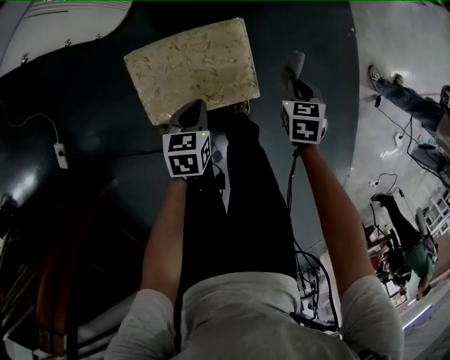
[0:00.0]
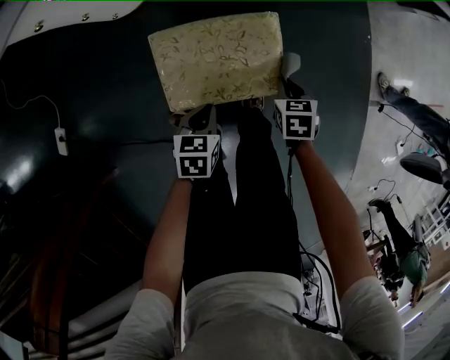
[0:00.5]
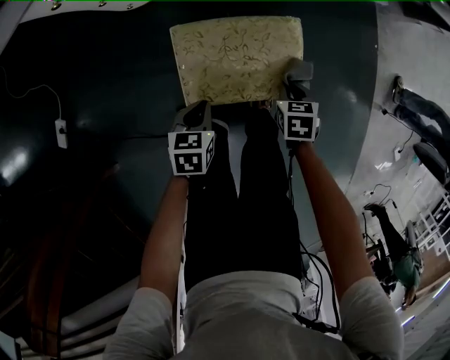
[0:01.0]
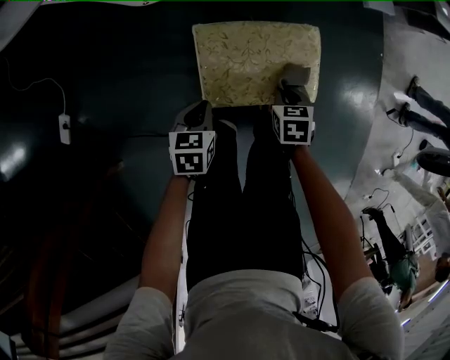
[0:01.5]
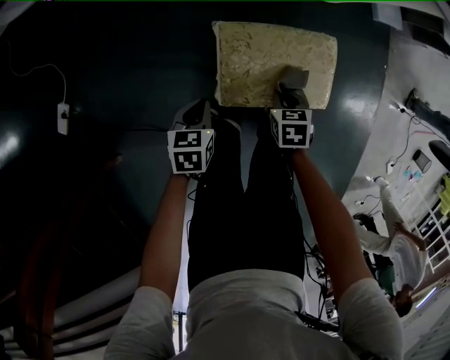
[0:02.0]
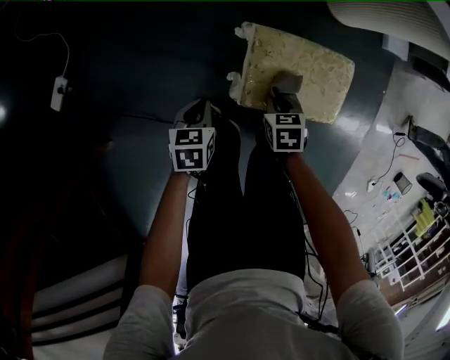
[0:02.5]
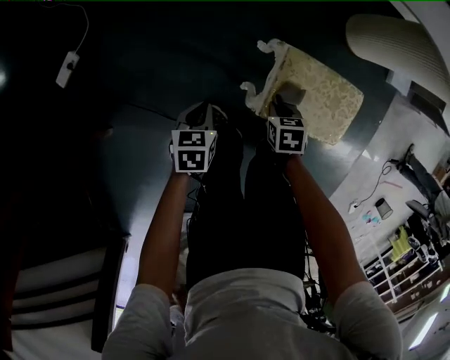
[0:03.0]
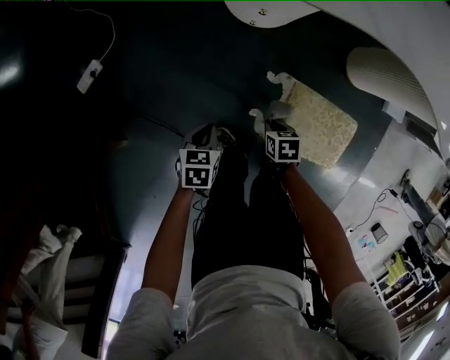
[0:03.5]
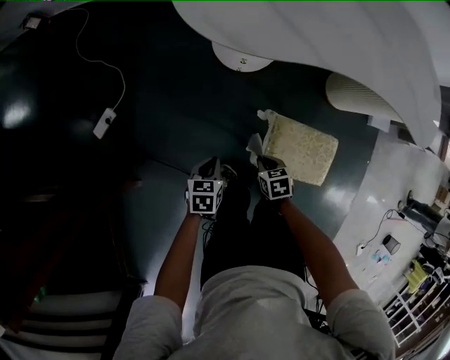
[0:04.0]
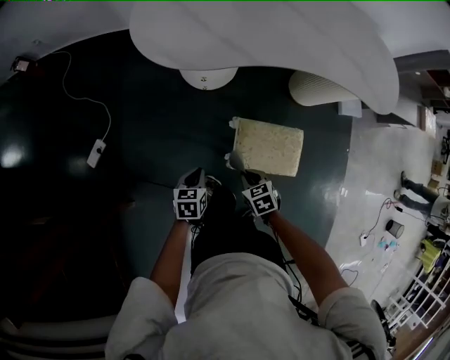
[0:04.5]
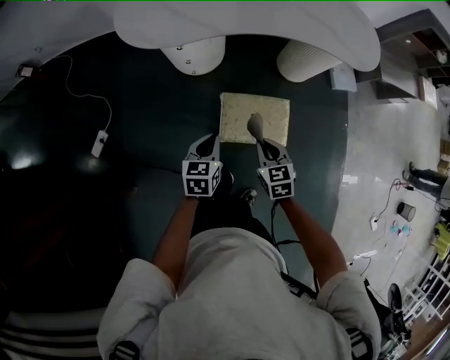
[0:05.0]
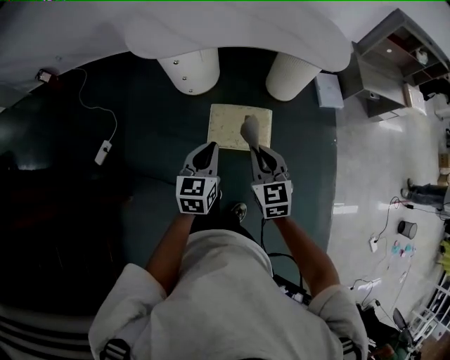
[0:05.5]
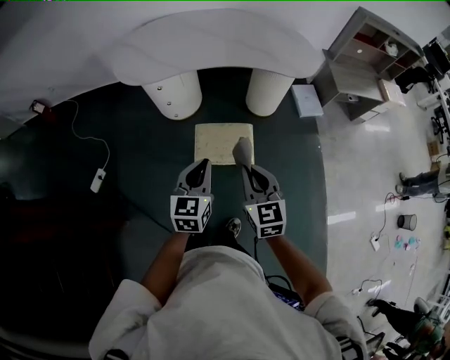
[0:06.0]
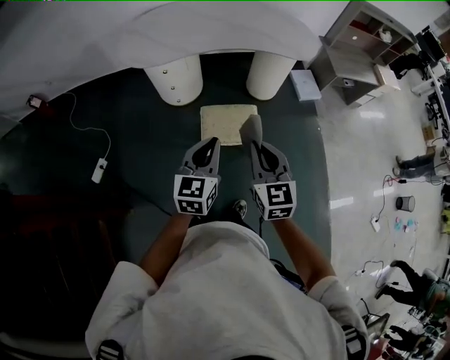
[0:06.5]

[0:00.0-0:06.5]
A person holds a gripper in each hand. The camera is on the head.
0:00.0 to 0:02.0: Both grippers travel together to the left, roughly 25 cm.
0:02.0 to 0:04.5: Both grippers travel together upward, roughly 20 cm. The right gripper rotates some 30 degrees.
0:04.5 to 0:06.5: The left gripper travels upward, to the right and backward by about 50 cm, and tilts its fingers some 40 degrees upward. The right gripper shifts approximately 50 cm upward, backward and to the right, and tilts its fingers roughly 40 degrees upward.

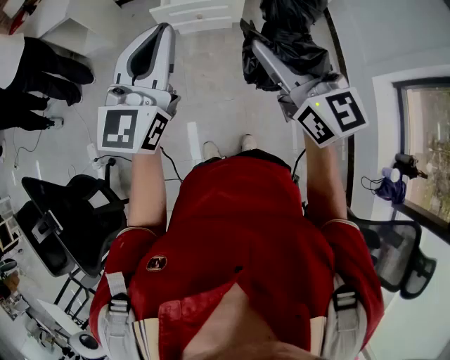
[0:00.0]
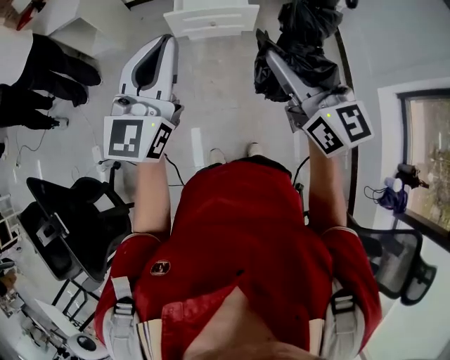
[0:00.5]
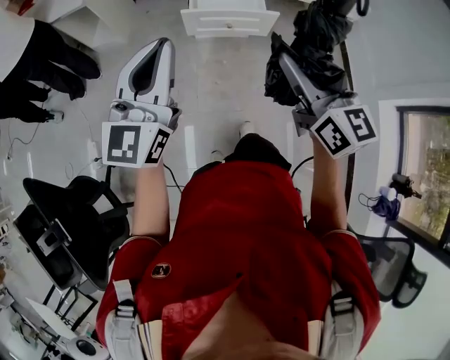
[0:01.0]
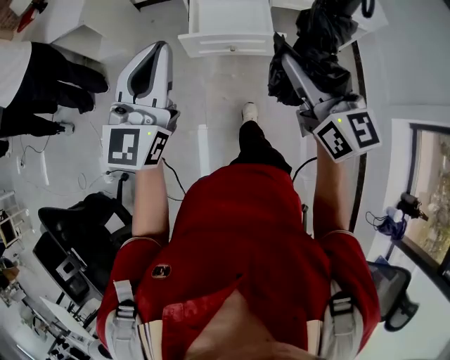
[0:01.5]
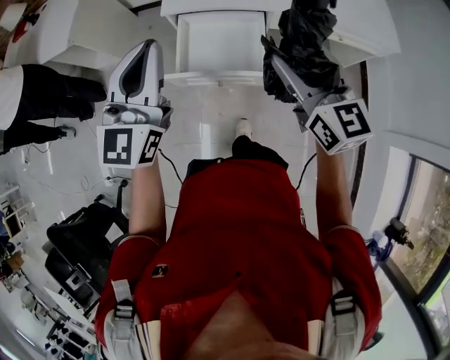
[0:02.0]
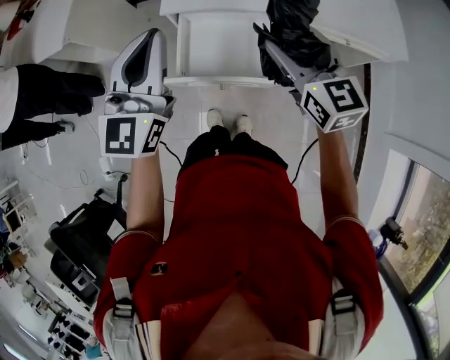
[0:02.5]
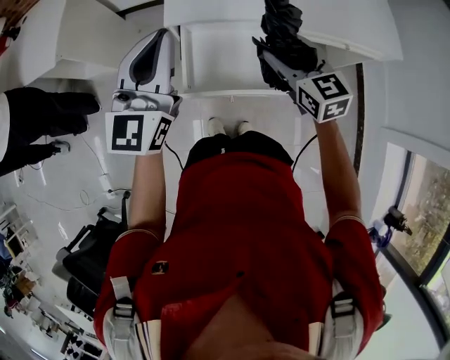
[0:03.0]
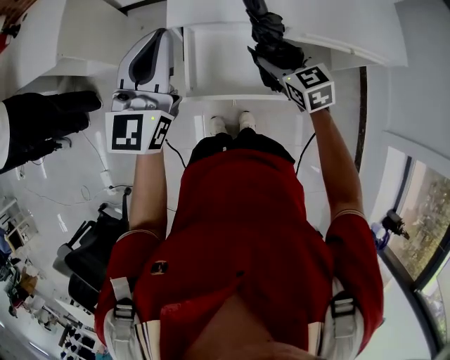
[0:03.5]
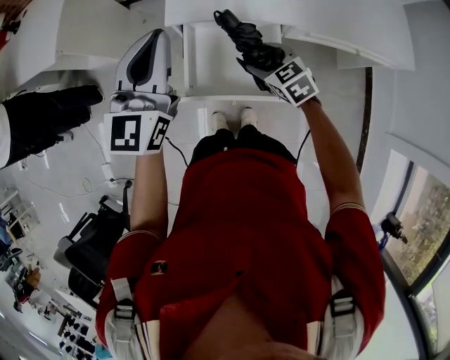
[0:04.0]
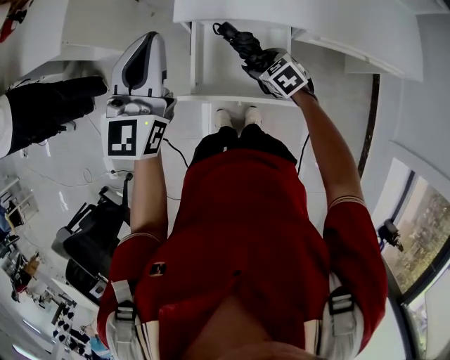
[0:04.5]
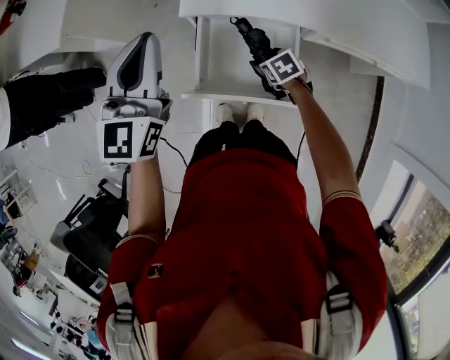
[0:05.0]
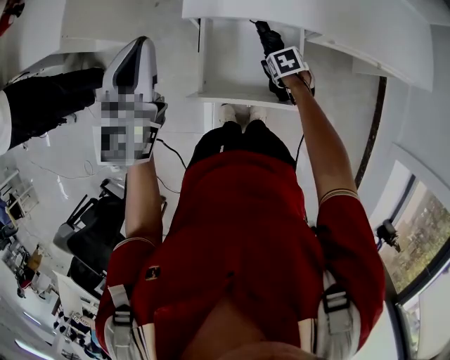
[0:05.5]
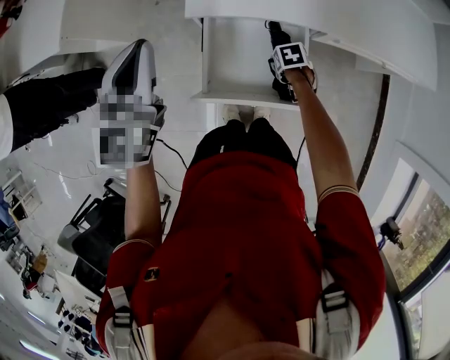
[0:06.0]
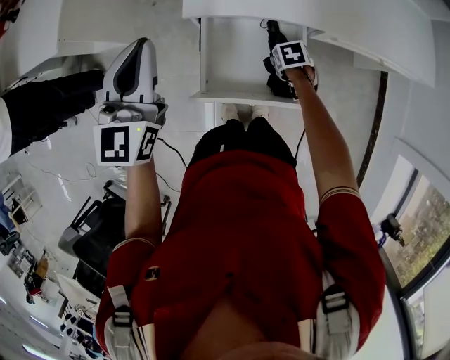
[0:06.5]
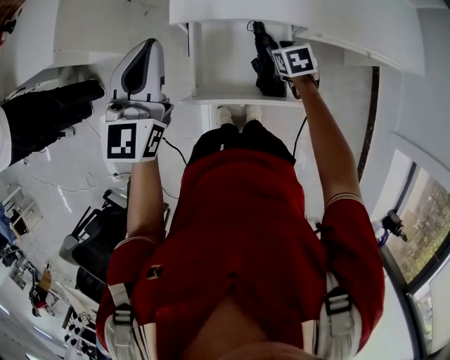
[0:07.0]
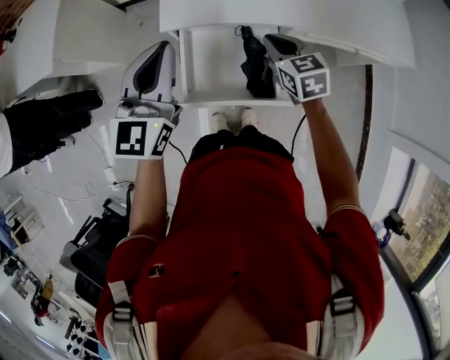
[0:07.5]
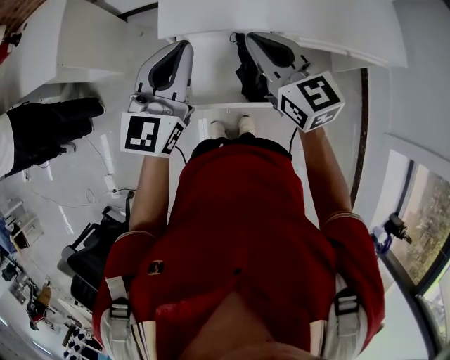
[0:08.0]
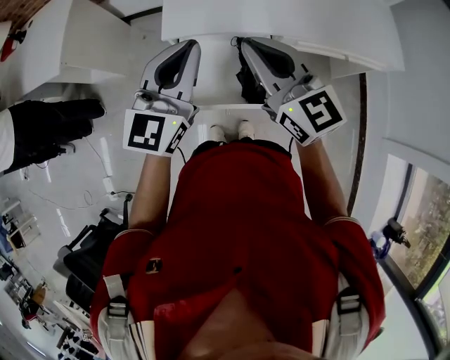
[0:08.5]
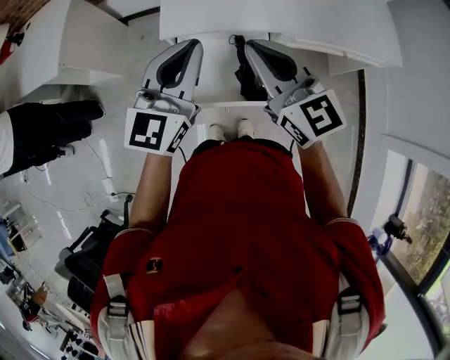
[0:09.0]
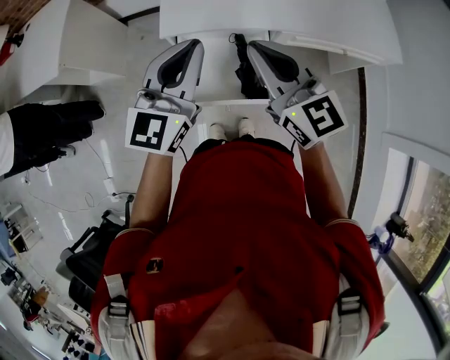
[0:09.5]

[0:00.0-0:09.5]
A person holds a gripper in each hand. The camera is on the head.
0:00.0 to 0:02.0: The two grippers go approximately 40 cm forward.
0:02.0 to 0:04.0: The right gripper heads downward and forward, covering roughly 30 cm, and angles its fingers downward, by roughly 40 degrees. The left gripper shifts some 15 cm forward.
0:04.0 to 0:05.5: The right gripper travels downward by roughly 15 cm, and angles its fingers downward, by approximately 30 degrees. The left gripper moves roughly 10 cm.
0:05.5 to 0:07.5: The left gripper changes place by some 10 cm. Meanwhile the right gripper heads upward, covering about 20 cm, angles its fingers upward, by roughly 40 degrees, and closes.
0:07.5 to 0:09.5: The right gripper moves upward and backward, approximately 20 cm, and tips its fingers upward by about 30 degrees, while the left gripper travels to the right by approximately 5 cm.

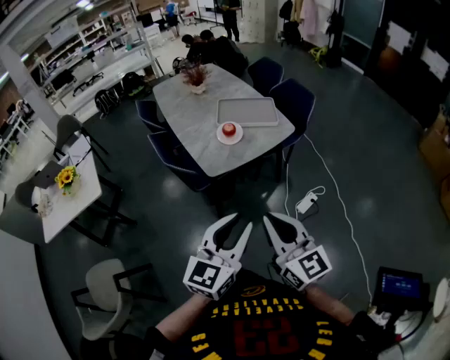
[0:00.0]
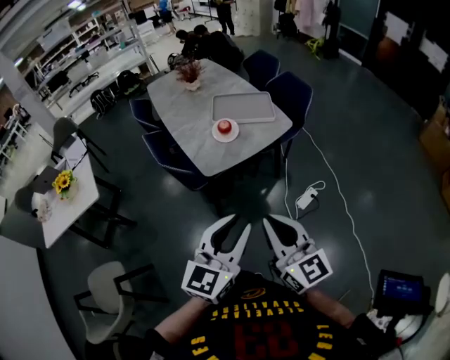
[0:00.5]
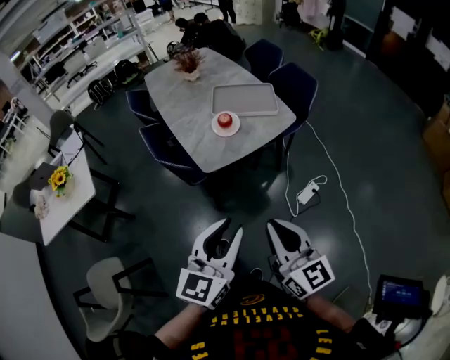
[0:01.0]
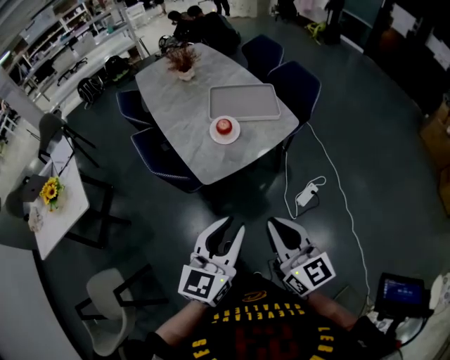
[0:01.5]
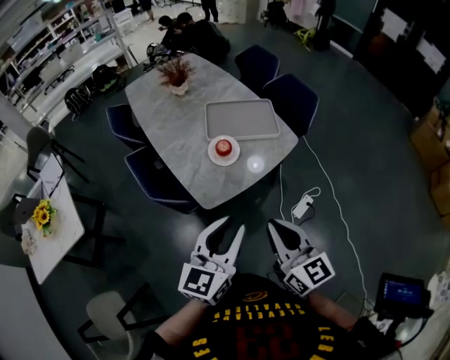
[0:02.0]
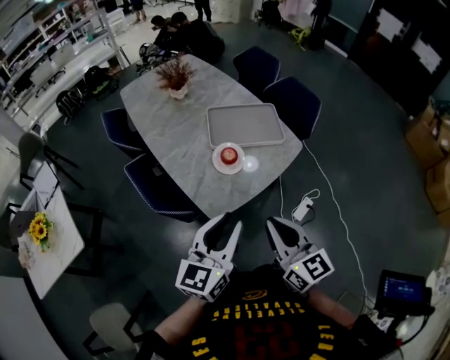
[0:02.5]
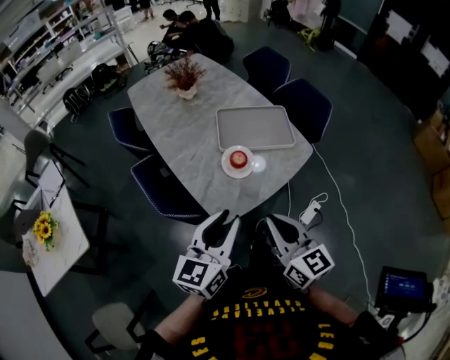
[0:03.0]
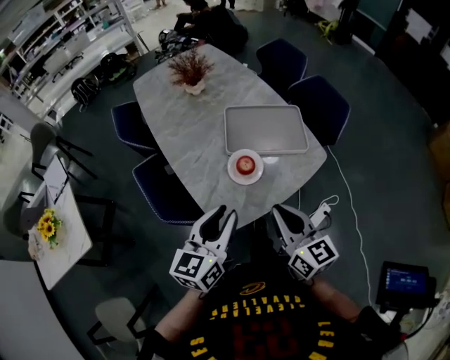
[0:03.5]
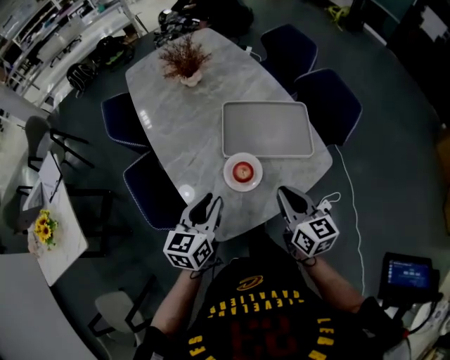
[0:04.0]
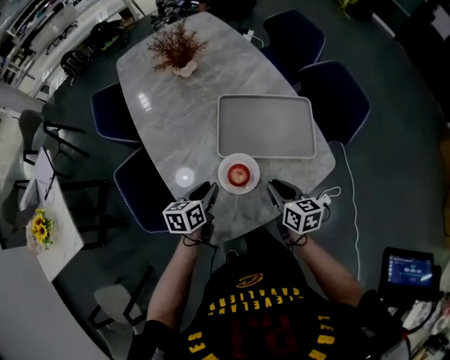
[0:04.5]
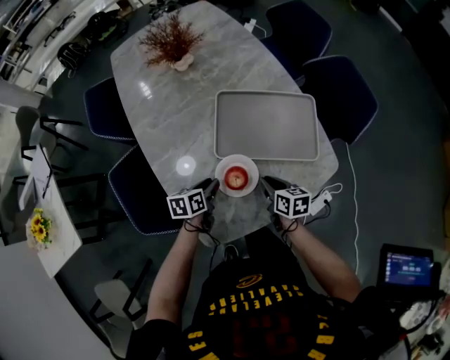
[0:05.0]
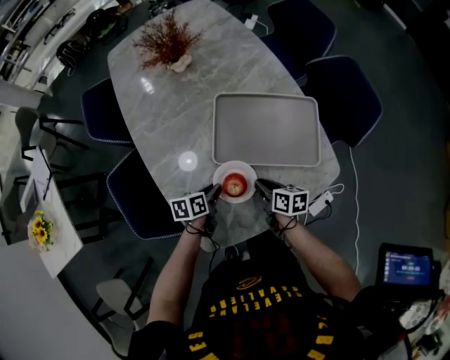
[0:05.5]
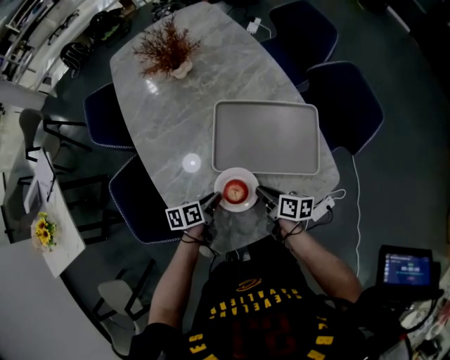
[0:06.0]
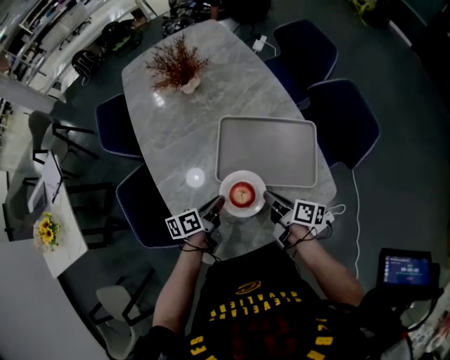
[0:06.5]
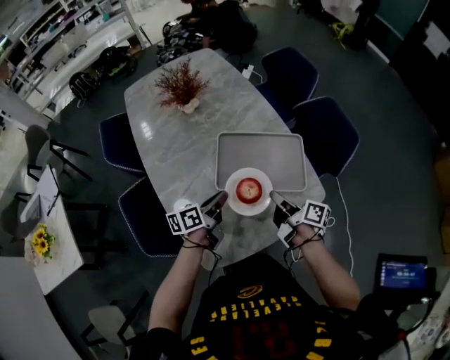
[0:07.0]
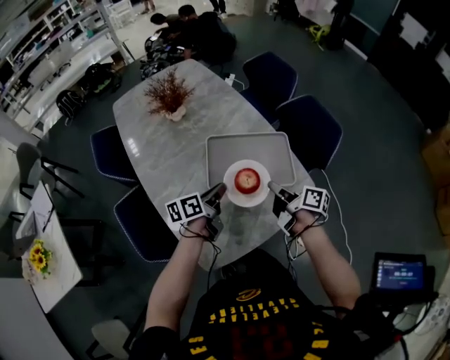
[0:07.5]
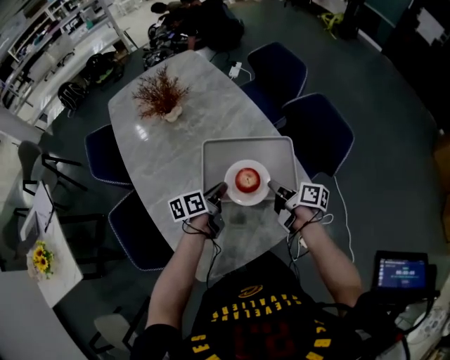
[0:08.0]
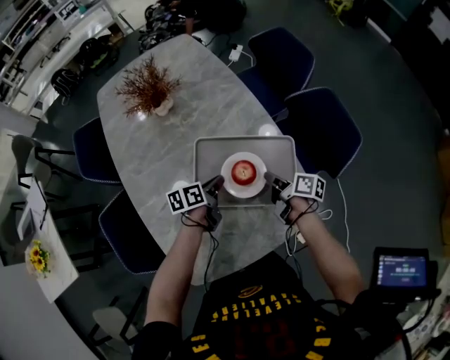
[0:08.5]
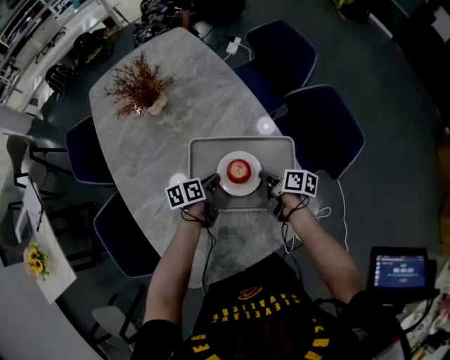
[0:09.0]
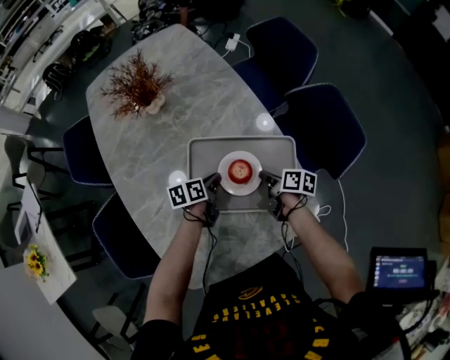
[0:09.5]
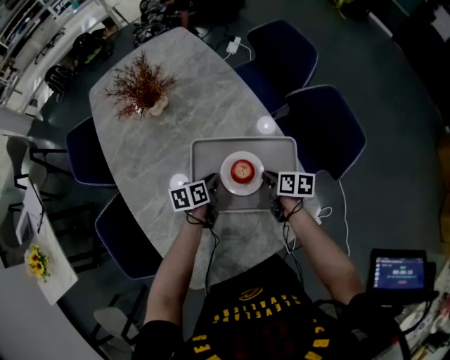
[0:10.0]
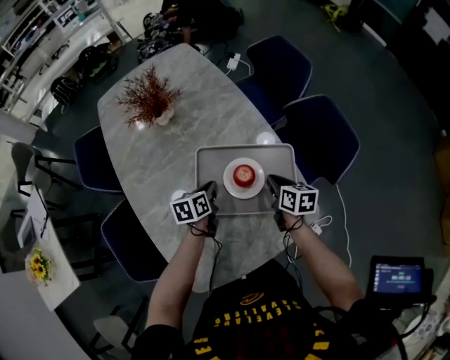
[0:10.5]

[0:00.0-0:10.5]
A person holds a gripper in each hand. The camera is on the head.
0:00.0 to 0:02.0: The two grippers go about 25 cm forward.
0:02.0 to 0:04.0: Both grippers move forward and downward, some 30 cm. The left gripper turns by about 20 degrees.
0:04.0 to 0:06.5: The grippers both shift downward and forward by some 20 cm. The right gripper twists approximately 50 degrees clockwise, seen from behind. The left gripper rolls counterclockwise, seen from behind, by some 40 degrees.
0:06.5 to 0:08.5: Both grippers move forward and to the right, approximately 15 cm.
0:08.5 to 0:10.5: The right gripper changes its angle by some 30 degrees.
